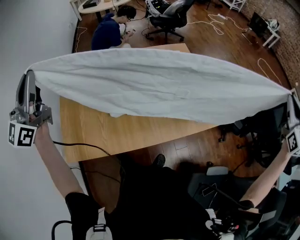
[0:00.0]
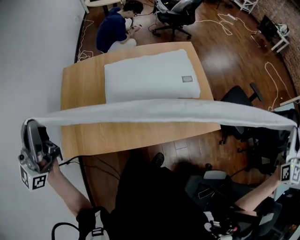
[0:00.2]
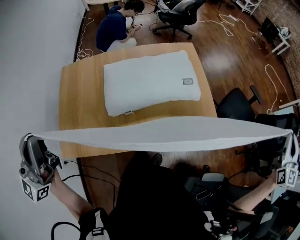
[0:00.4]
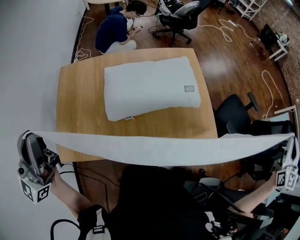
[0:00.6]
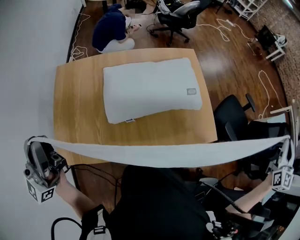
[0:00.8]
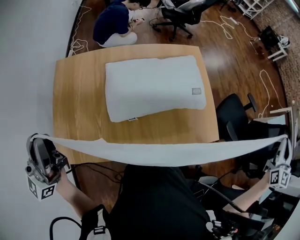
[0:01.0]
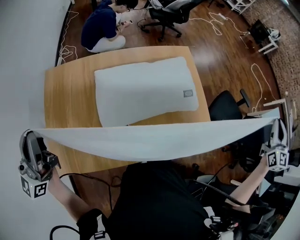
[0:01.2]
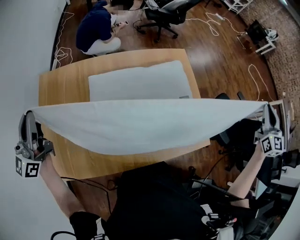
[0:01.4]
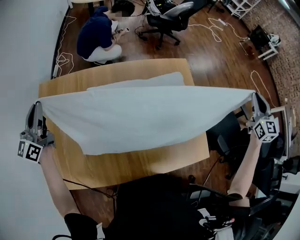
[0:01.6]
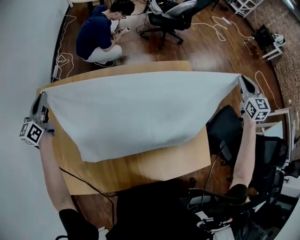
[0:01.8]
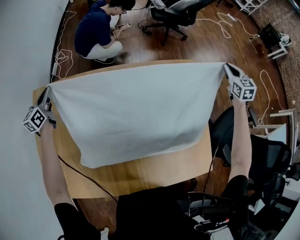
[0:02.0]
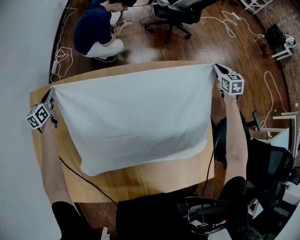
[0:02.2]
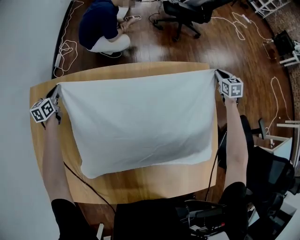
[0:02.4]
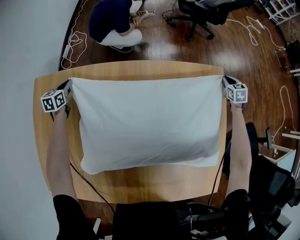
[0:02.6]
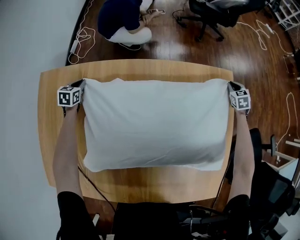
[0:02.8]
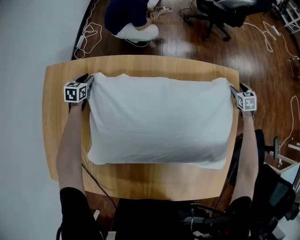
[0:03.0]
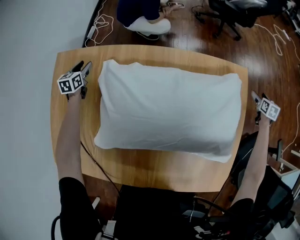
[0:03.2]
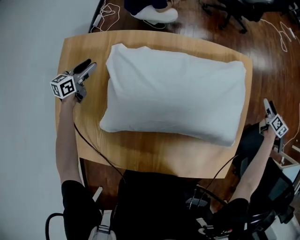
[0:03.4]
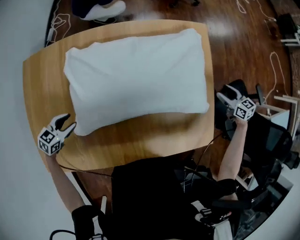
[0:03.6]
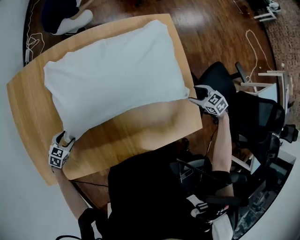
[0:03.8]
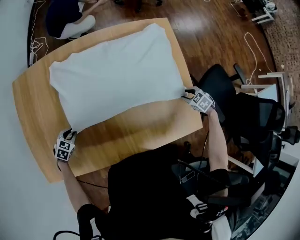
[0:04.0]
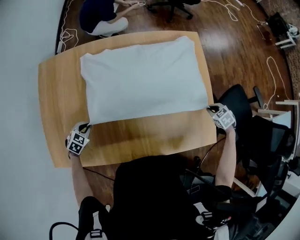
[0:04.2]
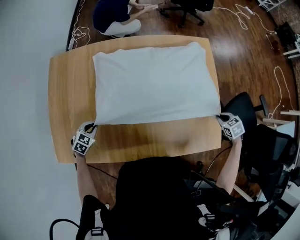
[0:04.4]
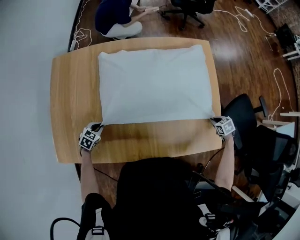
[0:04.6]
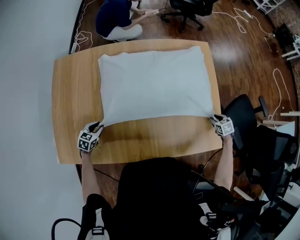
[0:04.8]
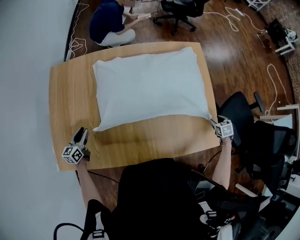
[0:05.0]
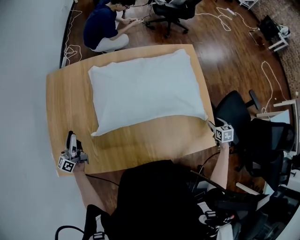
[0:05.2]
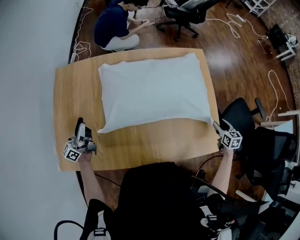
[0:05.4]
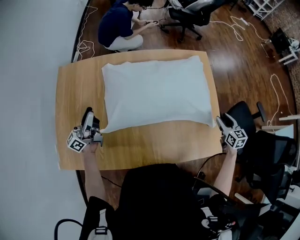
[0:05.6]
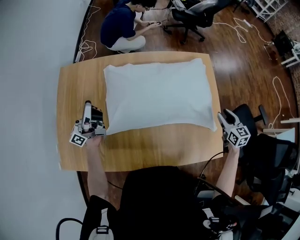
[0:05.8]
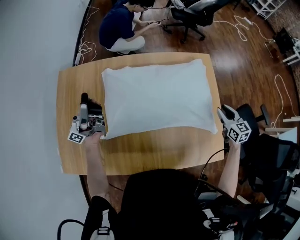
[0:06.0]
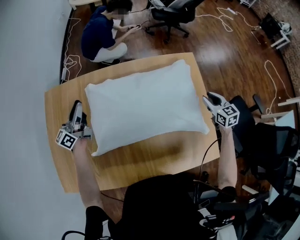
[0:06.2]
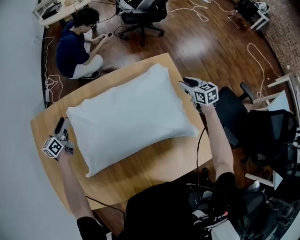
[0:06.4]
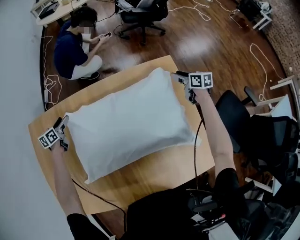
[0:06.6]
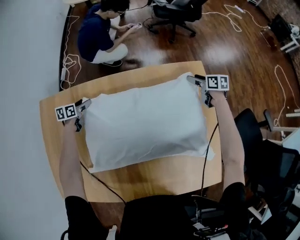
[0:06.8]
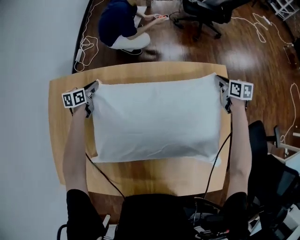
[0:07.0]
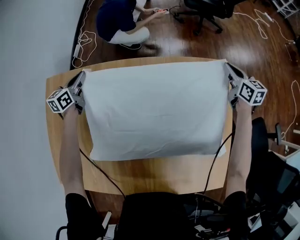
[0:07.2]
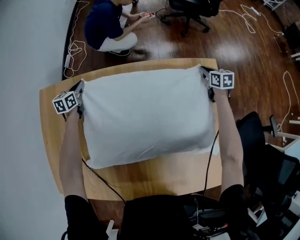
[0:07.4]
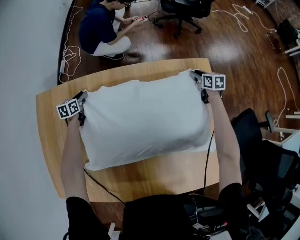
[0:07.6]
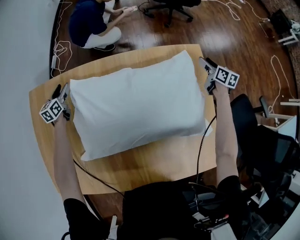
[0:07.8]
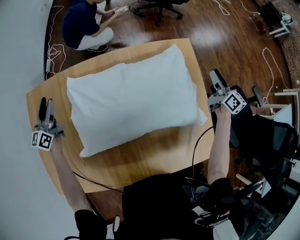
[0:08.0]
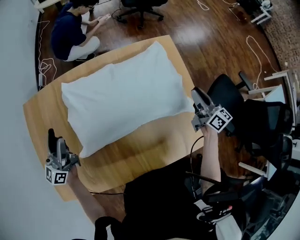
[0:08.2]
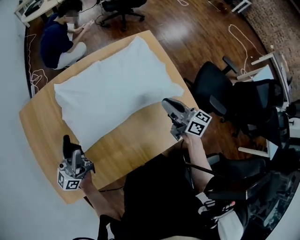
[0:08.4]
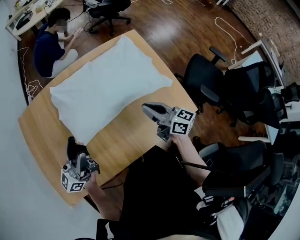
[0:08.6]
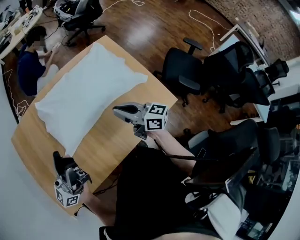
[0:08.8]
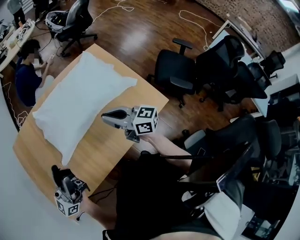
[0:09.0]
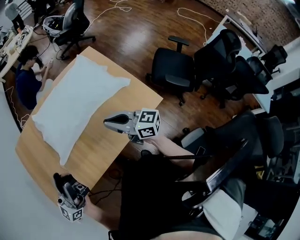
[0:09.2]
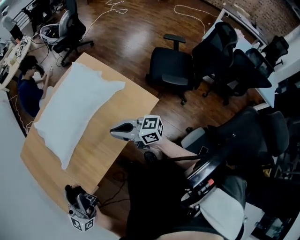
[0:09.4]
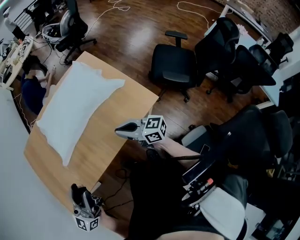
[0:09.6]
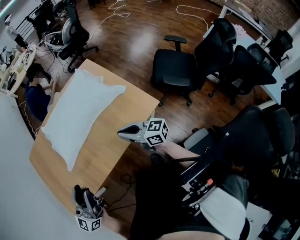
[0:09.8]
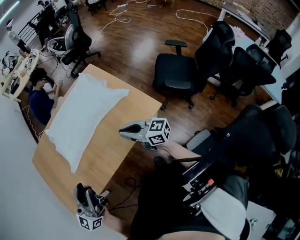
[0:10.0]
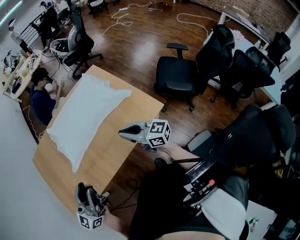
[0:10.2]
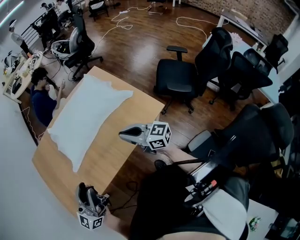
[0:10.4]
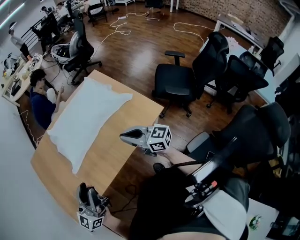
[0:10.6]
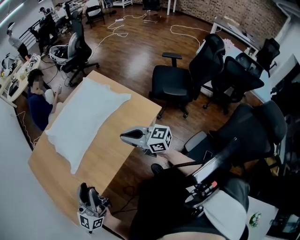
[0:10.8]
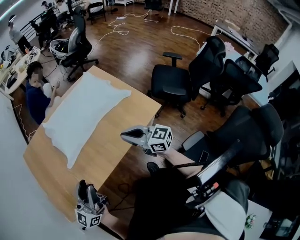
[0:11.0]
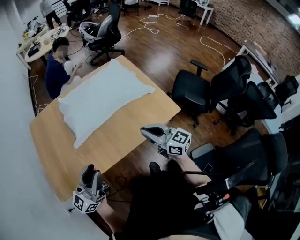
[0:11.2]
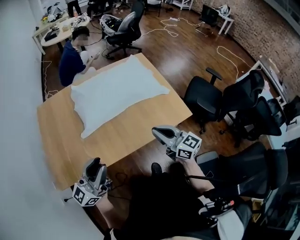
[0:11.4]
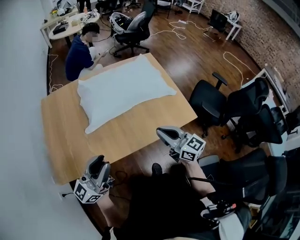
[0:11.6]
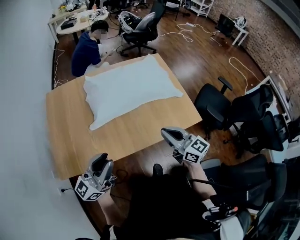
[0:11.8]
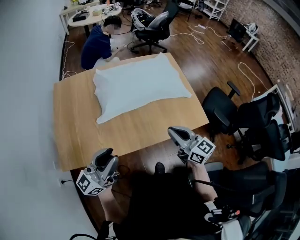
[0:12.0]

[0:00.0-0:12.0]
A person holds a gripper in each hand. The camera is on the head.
0:00.0 to 0:01.6: The left gripper goes roughly 35 cm downward, forward and to the left, and changes its angle by roughly 30 degrees, while the right gripper goes roughly 40 cm forward, downward and to the left.
0:01.6 to 0:03.0: The two grippers go approximately 60 cm downward and forward. The right gripper points its fingers approximately 40 degrees further downward, and opens; the left gripper angles its fingers downward, by about 50 degrees.
0:03.0 to 0:04.4: Both grippers are carried some 40 cm. The right gripper rotates roughly 20 degrees, and closes up; the left gripper rotates approximately 30 degrees, and opens, then closes once more.
0:04.4 to 0:06.0: The left gripper heads upward and forward, covering roughly 35 cm, points its fingers about 100 degrees further upward, and opens. The right gripper is displaced upward, forward and to the left by roughly 20 cm, tips its fingers upward by approximately 40 degrees, and opens.
0:06.0 to 0:07.6: The right gripper shifts about 40 cm forward and downward, swivels some 20 degrees, and closes, then opens again; the left gripper moves up and down over roughly 35 cm, changing direction 2 times, angles its fingers downward, by about 90 degrees, and opens and closes again.
0:07.6 to 0:09.0: The pair of grippers is taken backward, about 50 cm. The two grippers go some 40 cm upward. The right gripper tilts its fingers roughly 50 degrees upward, and closes. The left gripper angles its fingers upward, by some 70 degrees, and opens.
0:09.0 to 0:10.4: The two grippers go some 15 cm backward and to the right. The left gripper closes up.
0:10.4 to 0:12.0: The two grippers go approximately 10 cm to the left.

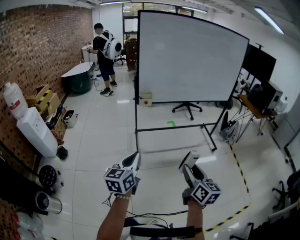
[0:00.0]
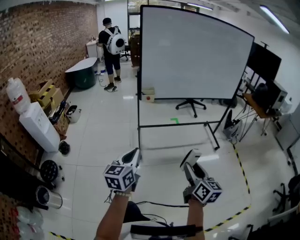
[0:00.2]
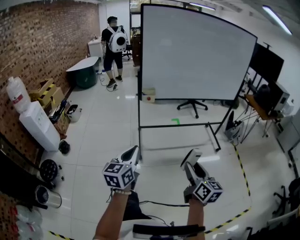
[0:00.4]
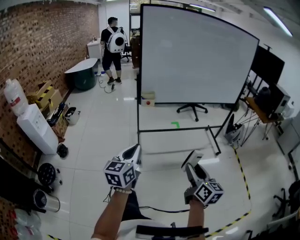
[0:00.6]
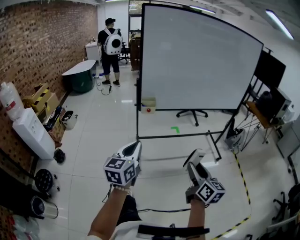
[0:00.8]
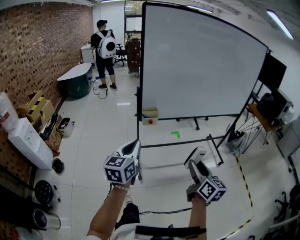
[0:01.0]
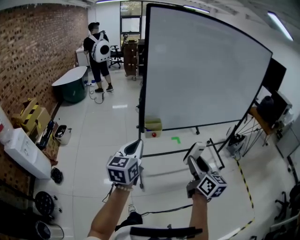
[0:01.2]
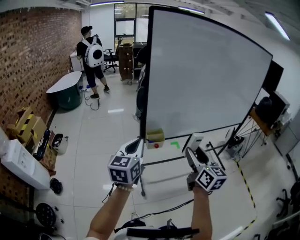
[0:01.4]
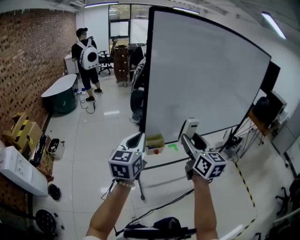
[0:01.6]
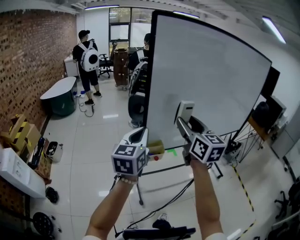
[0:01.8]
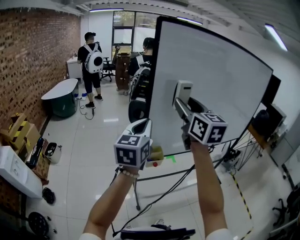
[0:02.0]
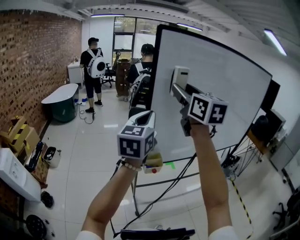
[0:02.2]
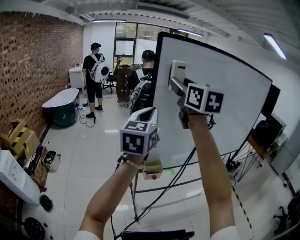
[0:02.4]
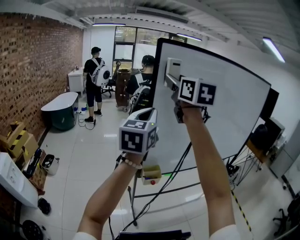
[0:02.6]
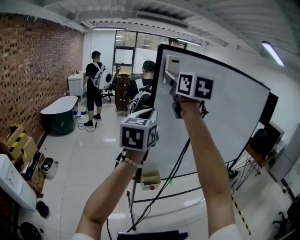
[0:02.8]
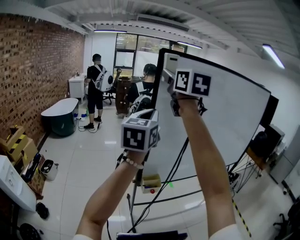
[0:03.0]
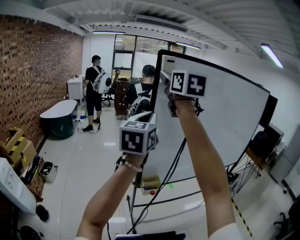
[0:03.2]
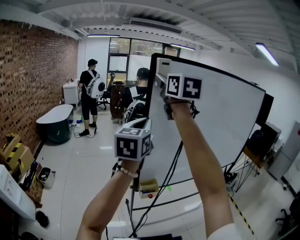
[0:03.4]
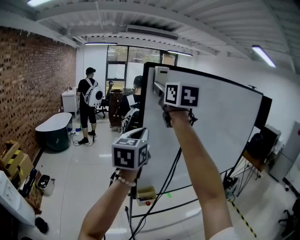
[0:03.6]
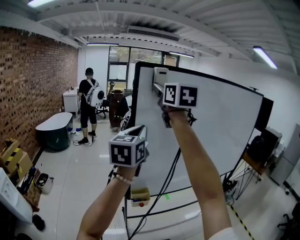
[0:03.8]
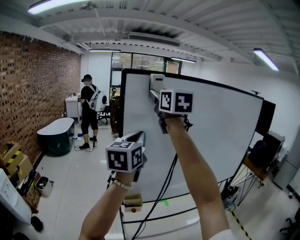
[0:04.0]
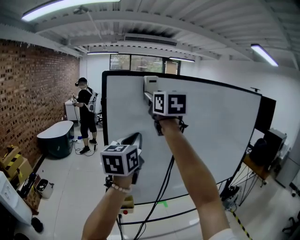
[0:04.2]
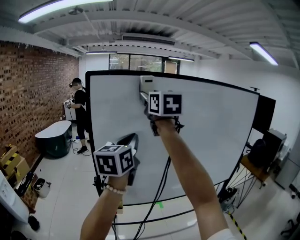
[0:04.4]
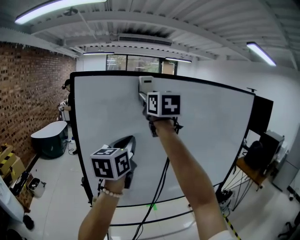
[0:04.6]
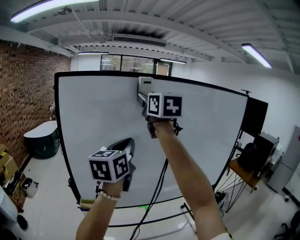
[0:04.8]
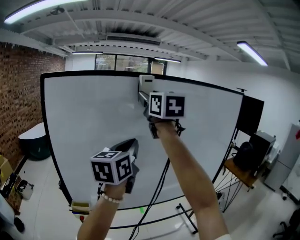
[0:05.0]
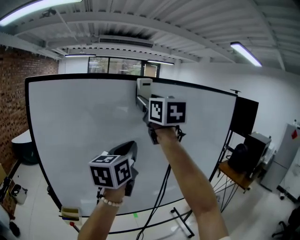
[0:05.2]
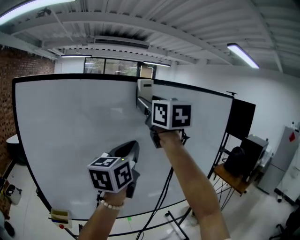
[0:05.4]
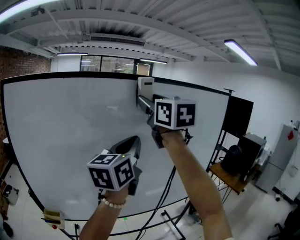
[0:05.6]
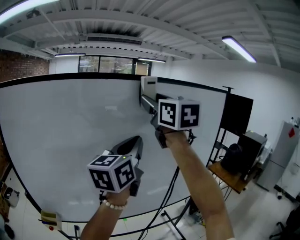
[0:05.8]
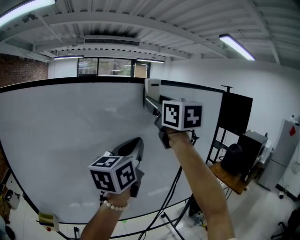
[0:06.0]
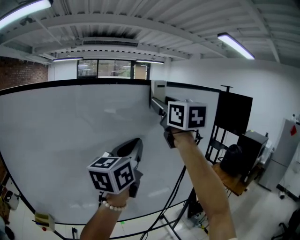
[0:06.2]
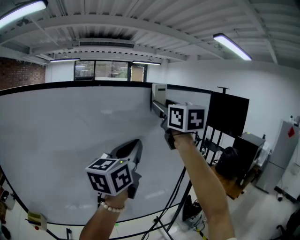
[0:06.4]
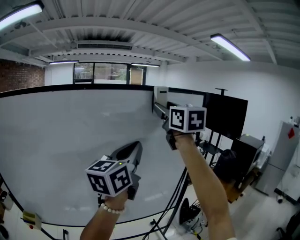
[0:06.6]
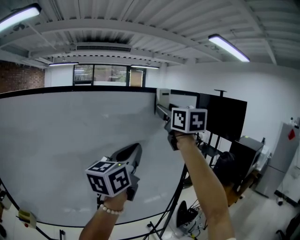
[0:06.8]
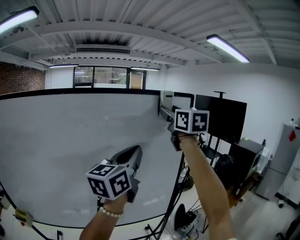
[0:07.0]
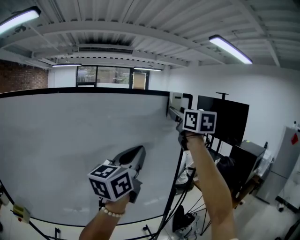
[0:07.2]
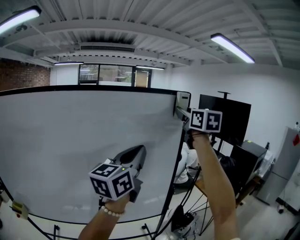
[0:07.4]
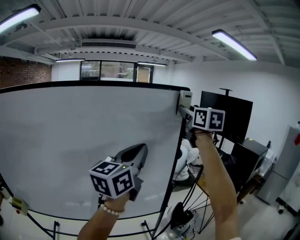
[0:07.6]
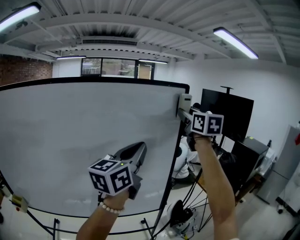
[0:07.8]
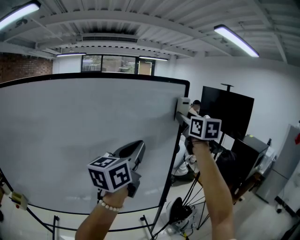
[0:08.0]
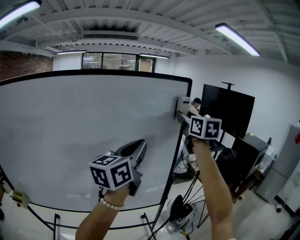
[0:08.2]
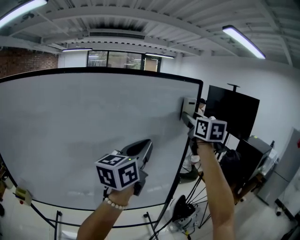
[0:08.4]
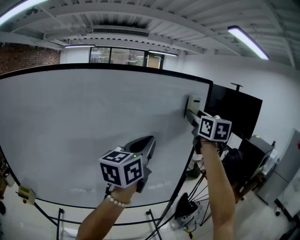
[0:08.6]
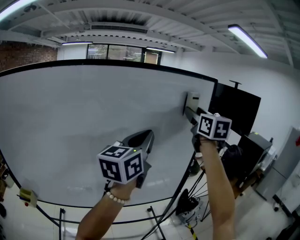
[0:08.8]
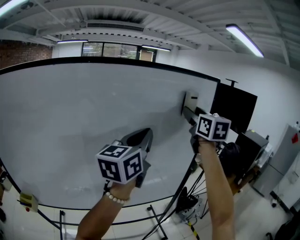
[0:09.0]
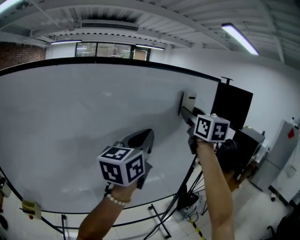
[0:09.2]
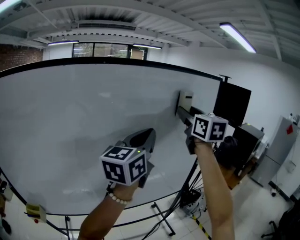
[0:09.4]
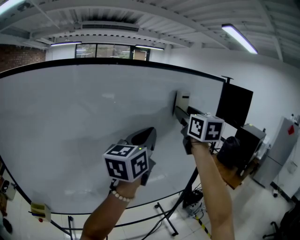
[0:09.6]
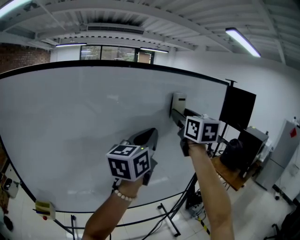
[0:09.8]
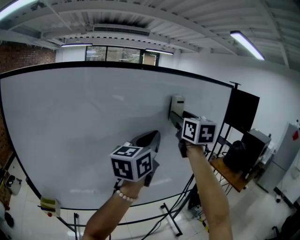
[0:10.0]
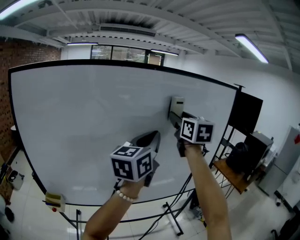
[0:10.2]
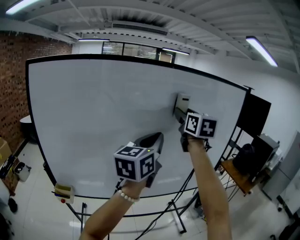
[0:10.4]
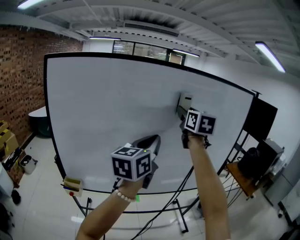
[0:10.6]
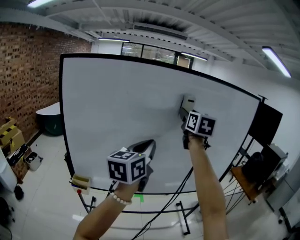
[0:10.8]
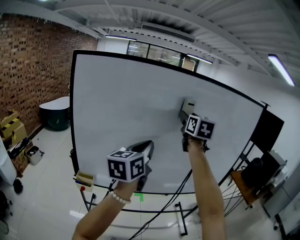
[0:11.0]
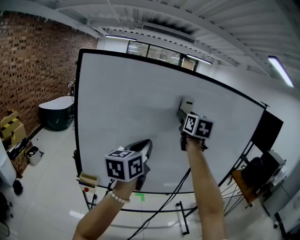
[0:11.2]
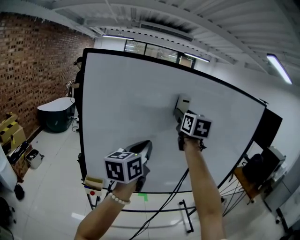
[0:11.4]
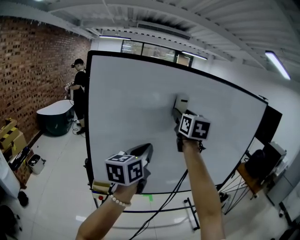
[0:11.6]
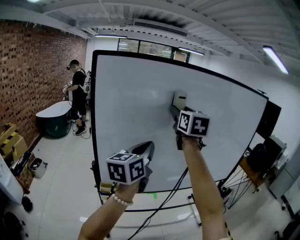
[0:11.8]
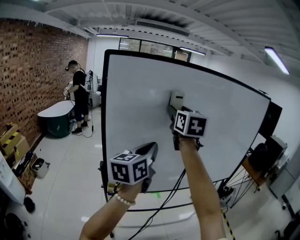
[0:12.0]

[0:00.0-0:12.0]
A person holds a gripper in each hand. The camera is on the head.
0:00.0 to 0:01.6: Both grippers are carried forward, some 60 cm.
0:01.6 to 0:03.0: The right gripper shifts roughly 40 cm upward and forward. Meanwhile the left gripper is displaced upward and forward by approximately 25 cm.
0:03.0 to 0:04.4: Both grippers travel together to the right, some 20 cm.
0:04.4 to 0:06.0: The two grippers travel together, to the right, about 50 cm.
0:06.0 to 0:07.6: The right gripper travels to the right and forward by about 50 cm. Meanwhile the left gripper heads to the right, covering roughly 30 cm.
0:07.6 to 0:09.0: The left gripper heads to the left, covering roughly 15 cm; the right gripper travels to the left, downward and backward by approximately 15 cm.
0:09.0 to 0:10.4: Both grippers travel together to the left and backward, roughly 30 cm.
0:10.4 to 0:12.0: Both grippers move to the left, roughly 35 cm.
